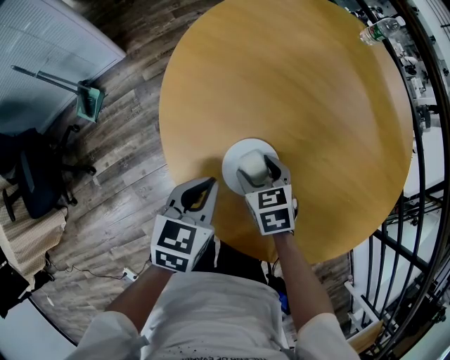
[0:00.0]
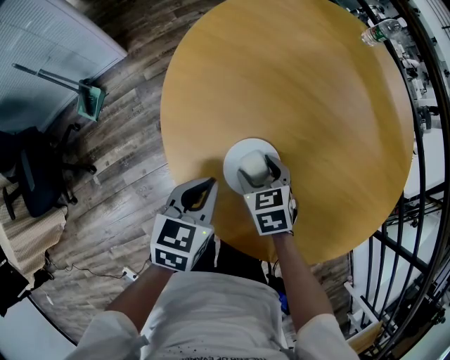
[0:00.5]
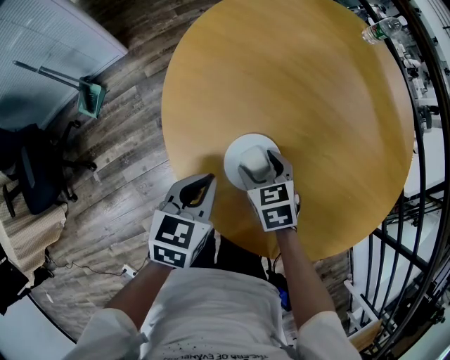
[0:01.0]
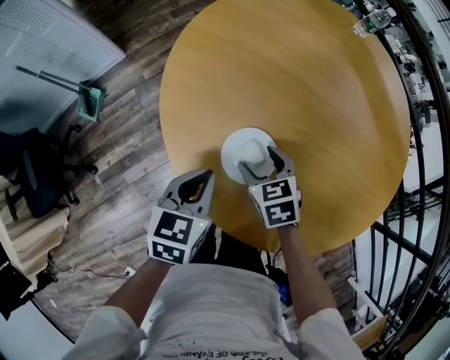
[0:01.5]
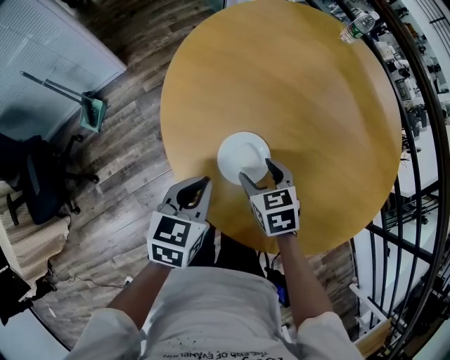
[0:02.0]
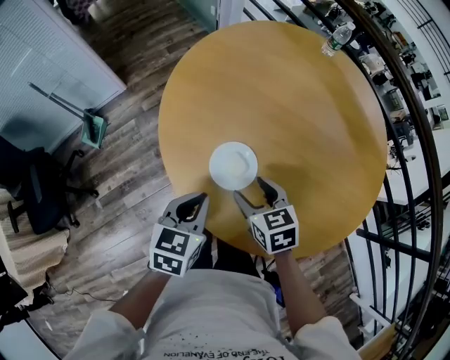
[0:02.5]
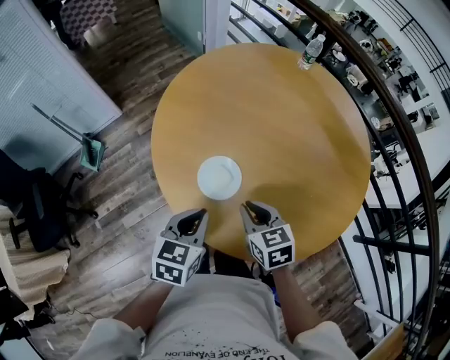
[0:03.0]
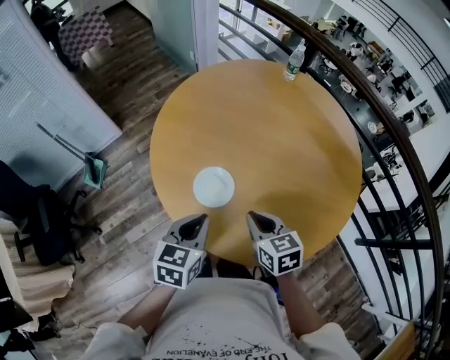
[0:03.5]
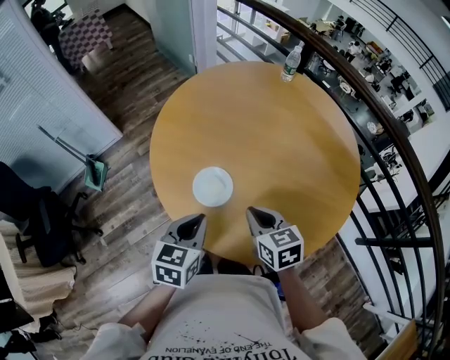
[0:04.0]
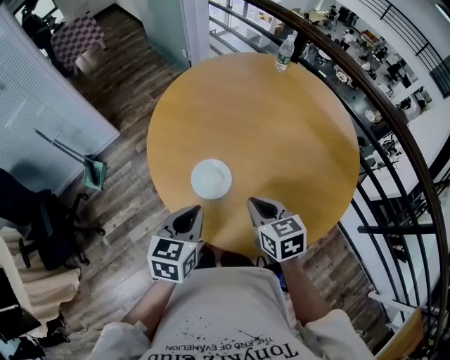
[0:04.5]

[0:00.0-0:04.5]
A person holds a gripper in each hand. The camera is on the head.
0:00.0 to 0:02.0: The right gripper ends up about 5 cm from where it was.
0:02.0 to 0:04.5: The two grippers go about 15 cm upward, backward and to the right. The right gripper closes its fingers.

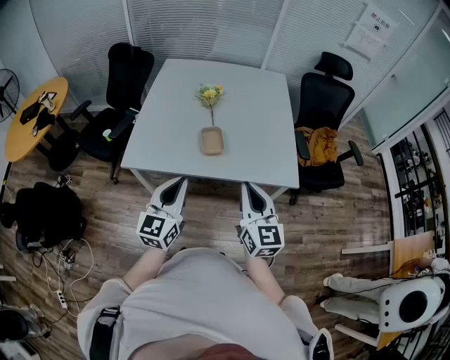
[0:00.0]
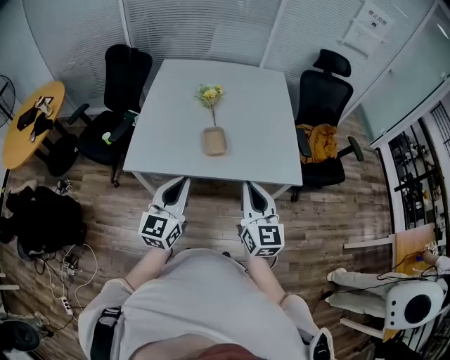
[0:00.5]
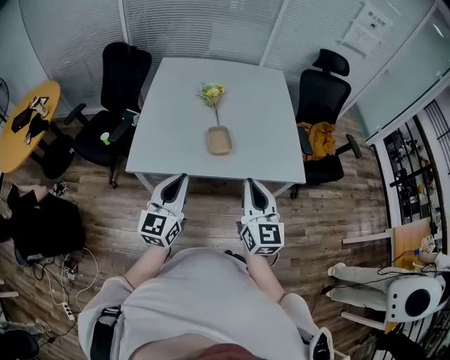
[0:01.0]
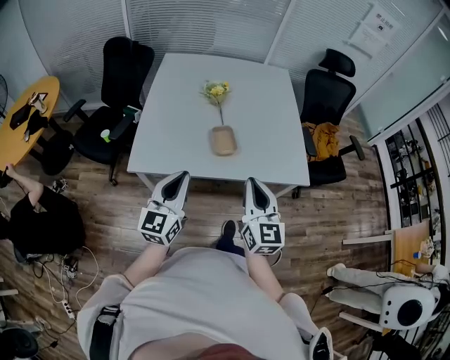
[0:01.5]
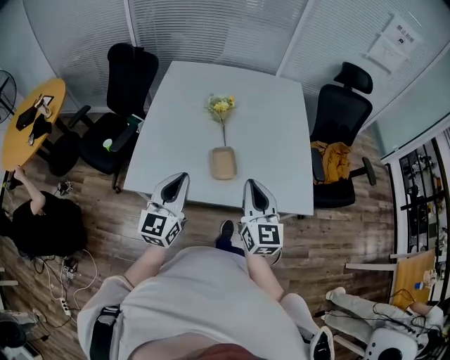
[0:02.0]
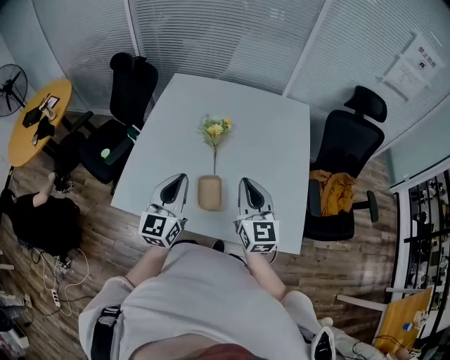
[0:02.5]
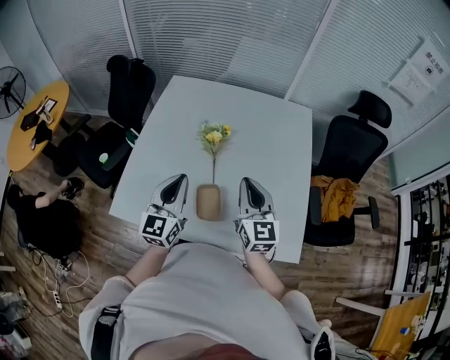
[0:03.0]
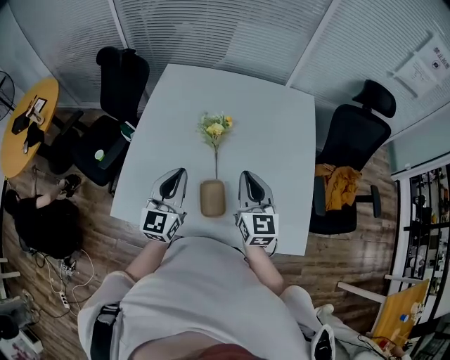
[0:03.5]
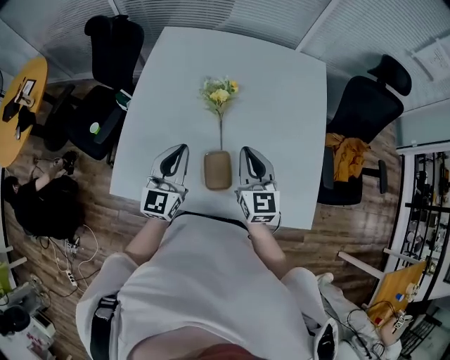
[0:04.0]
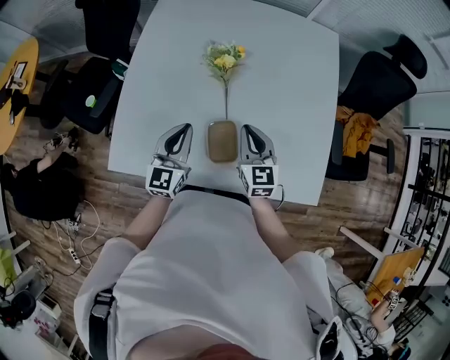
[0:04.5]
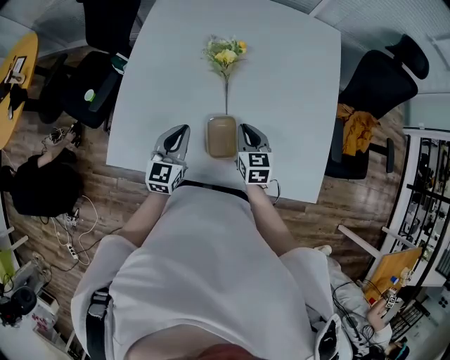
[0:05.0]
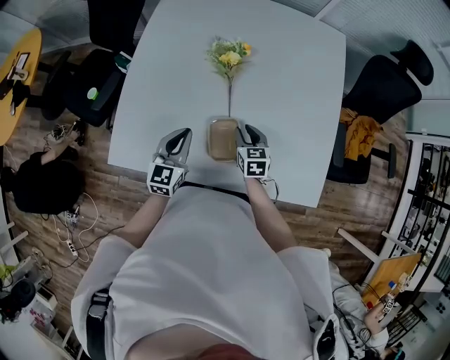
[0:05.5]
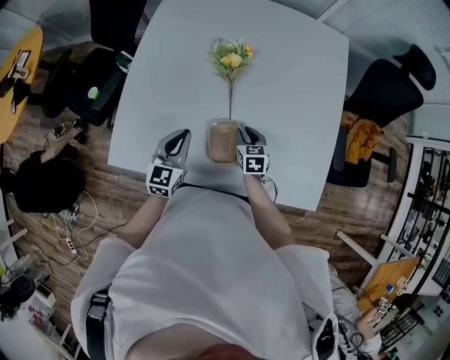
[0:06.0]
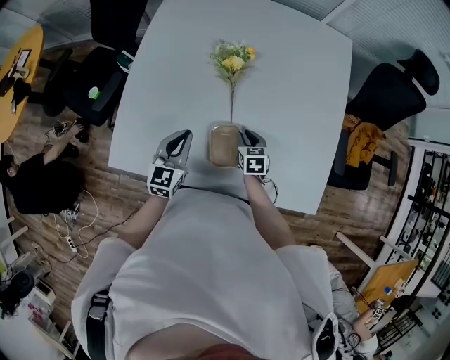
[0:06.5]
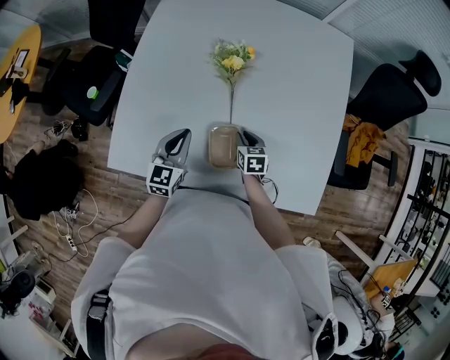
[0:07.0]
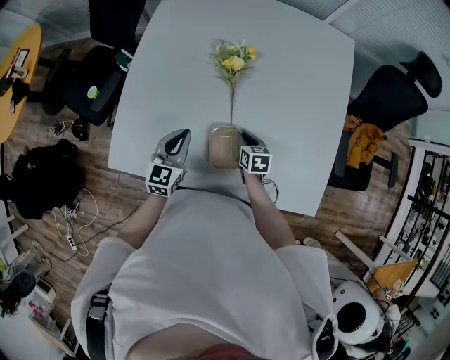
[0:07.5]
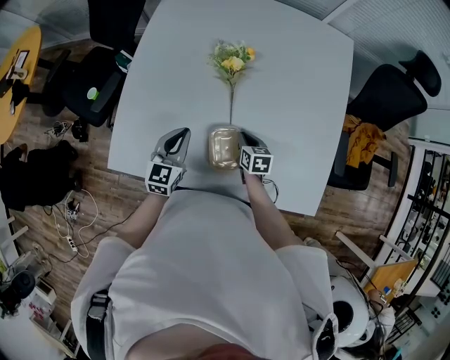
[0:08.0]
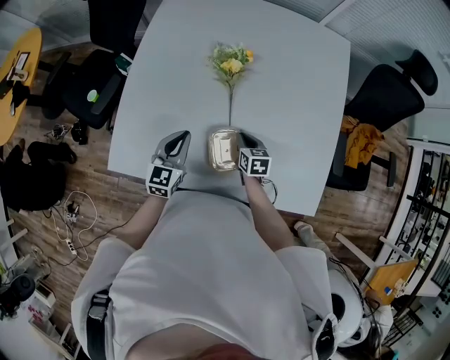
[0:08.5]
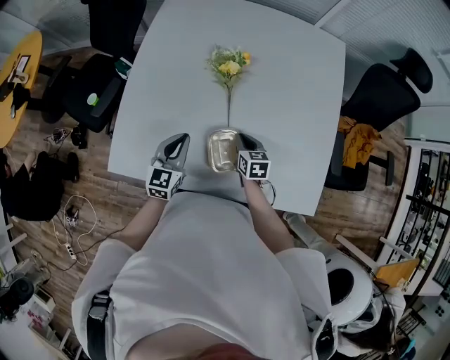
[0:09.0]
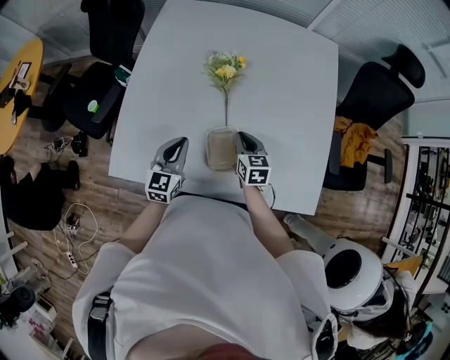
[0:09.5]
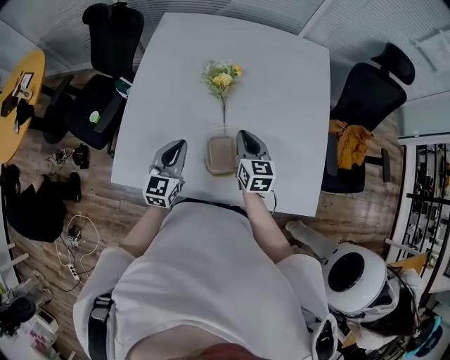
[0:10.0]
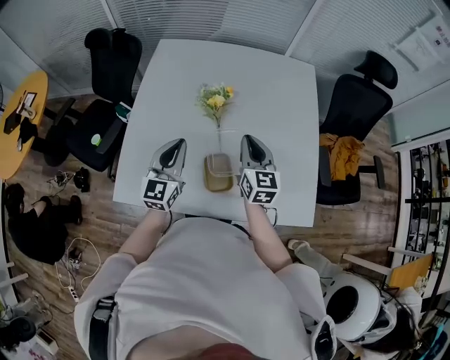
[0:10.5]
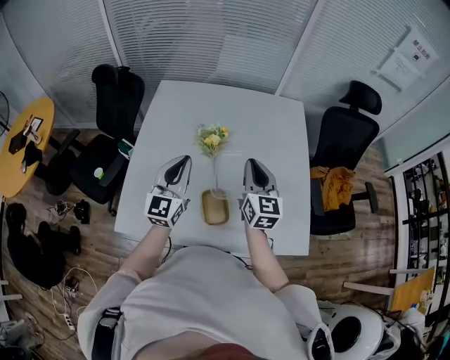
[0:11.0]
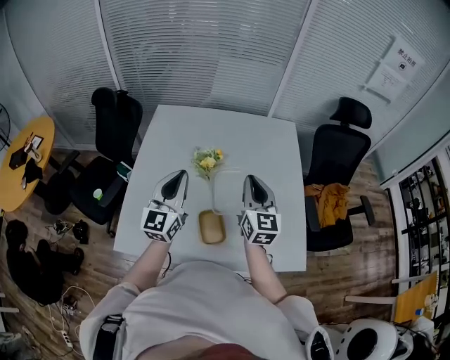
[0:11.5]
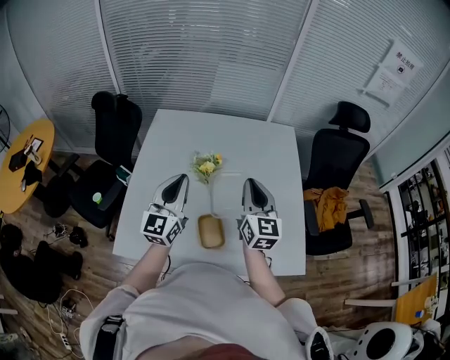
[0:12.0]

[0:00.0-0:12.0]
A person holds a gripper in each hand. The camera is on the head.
0:00.0 to 0:02.0: The left gripper heads forward and to the left, covering roughly 15 cm. Meanwhile the right gripper travels forward by roughly 15 cm.
0:02.0 to 0:04.0: Both grippers move forward, some 25 cm.
0:04.0 to 0:06.0: The left gripper moves downward, some 15 cm. Meanwhile the right gripper moves downward, some 25 cm, points its fingers approximately 30 degrees further downward, and opens.
0:06.0 to 0:08.0: The grippers stay close to where they were, moving slightly.
0:08.0 to 0:10.0: The left gripper travels upward by about 5 cm; the right gripper is displaced upward by roughly 20 cm, and changes its angle by approximately 30 degrees.
0:10.0 to 0:12.0: The two grippers go approximately 20 cm upward. The left gripper turns by some 20 degrees. Meanwhile the right gripper swivels some 30 degrees.

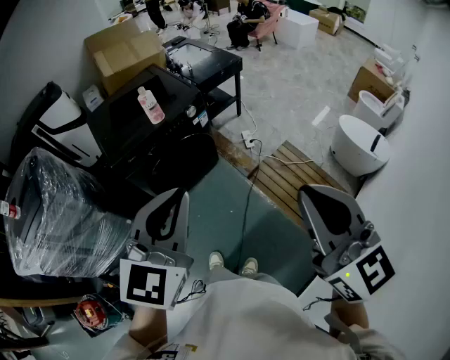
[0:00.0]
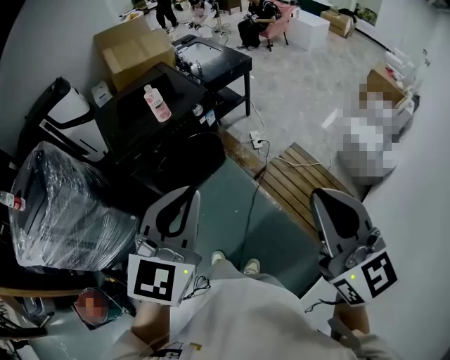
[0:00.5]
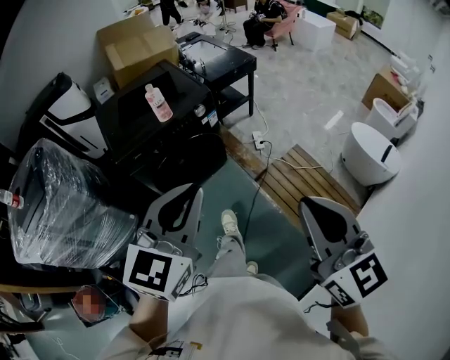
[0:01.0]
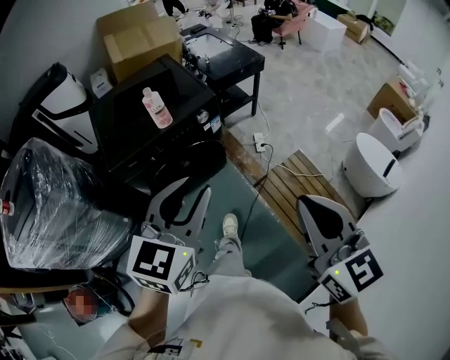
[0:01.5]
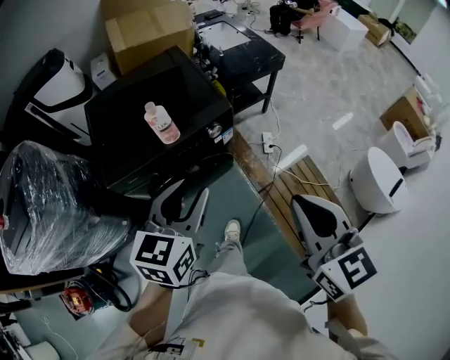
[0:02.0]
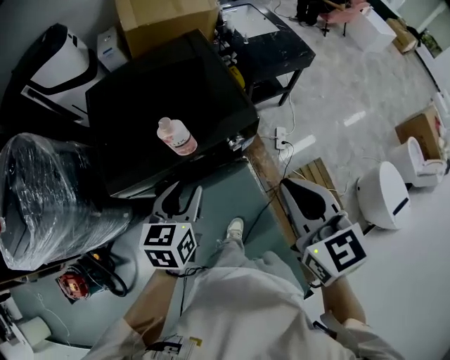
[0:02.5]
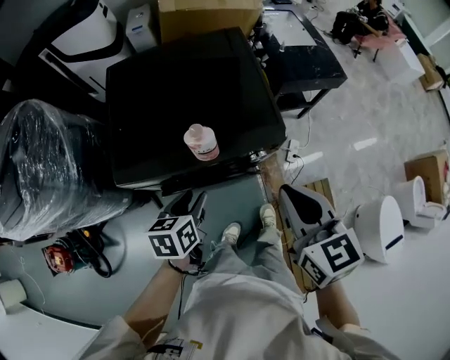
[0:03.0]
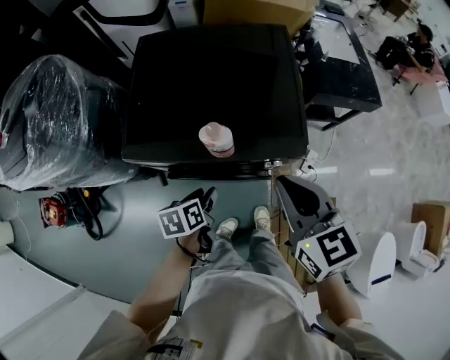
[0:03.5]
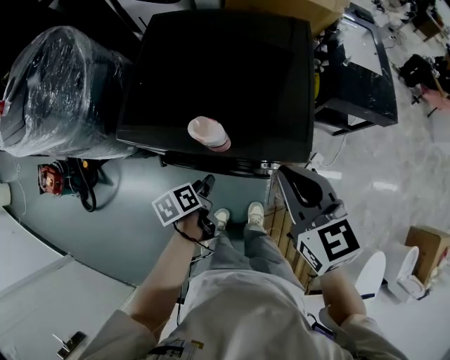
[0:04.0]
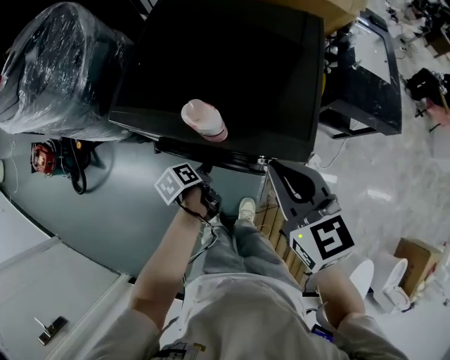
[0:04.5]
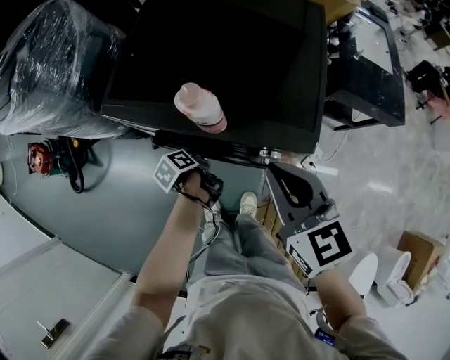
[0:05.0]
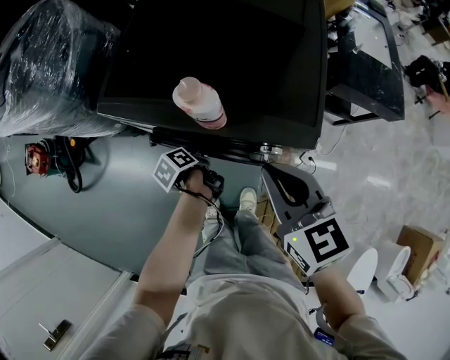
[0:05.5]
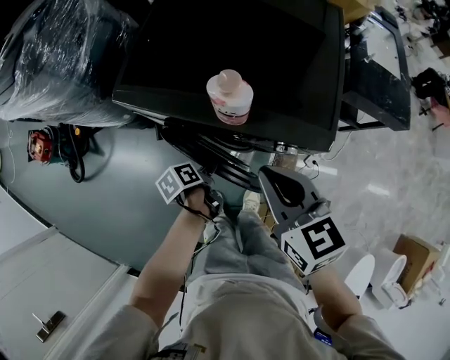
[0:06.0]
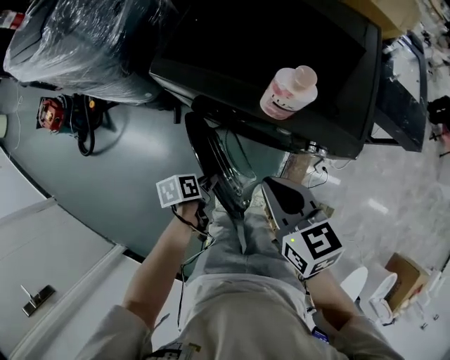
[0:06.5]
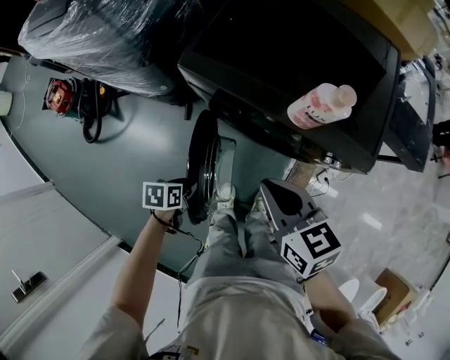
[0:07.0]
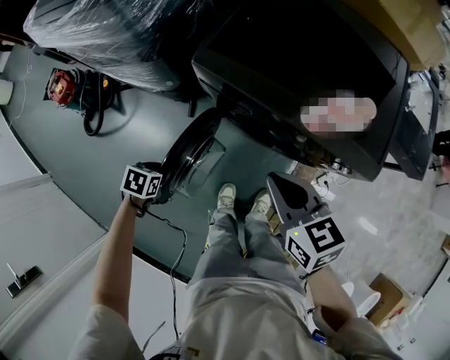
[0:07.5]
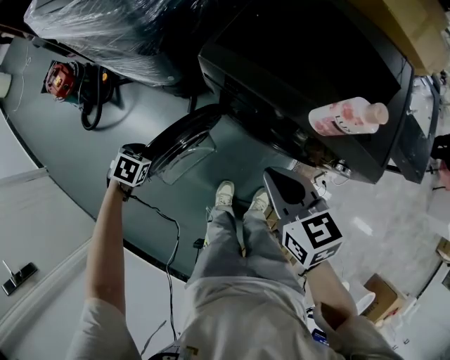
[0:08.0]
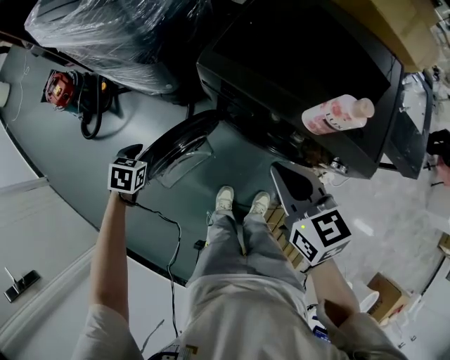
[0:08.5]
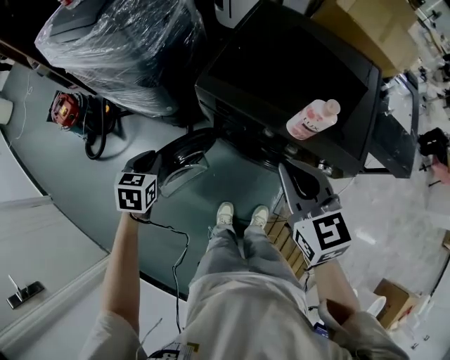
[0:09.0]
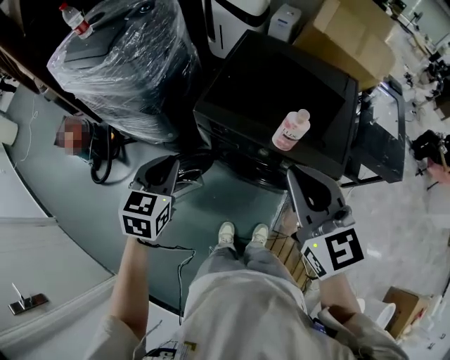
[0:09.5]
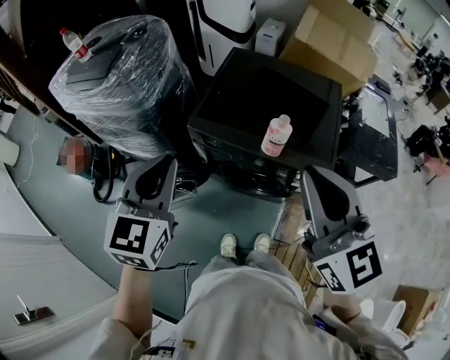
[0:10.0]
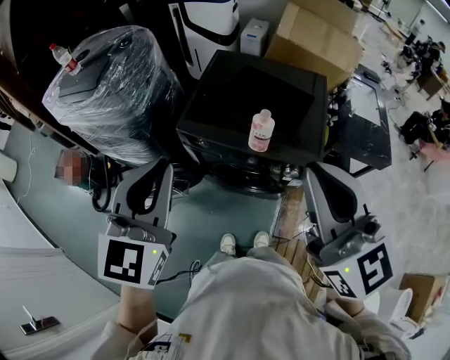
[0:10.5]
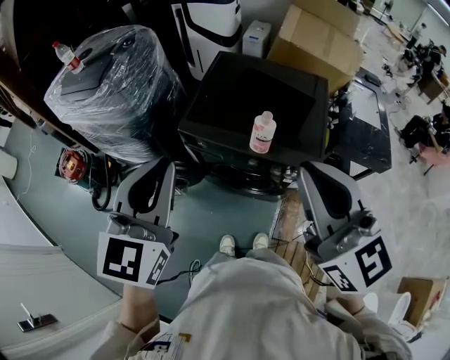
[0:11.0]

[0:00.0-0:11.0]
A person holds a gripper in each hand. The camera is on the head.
0:00.0 to 0:02.0: The right gripper shifts about 30 cm forward. The left gripper is displaced forward and downward by roughly 35 cm, changes its angle by approximately 30 degrees, and opens.
0:02.0 to 0:03.5: The left gripper moves downward, approximately 25 cm, and rotates around the line of its fingers by approximately 60 degrees, counterclockwise from behind. Meanwhile the right gripper ends up about 35 cm from where it was, and swivels approximately 30 degrees.
0:03.5 to 0:05.5: The right gripper goes about 10 cm downward; the left gripper travels downward by some 15 cm, and rolls counterclockwise, seen from behind, by about 50 degrees.
0:05.5 to 0:07.5: The right gripper shifts some 20 cm to the left; the left gripper shifts about 35 cm to the left and backward, and twists approximately 60 degrees clockwise, seen from behind.
0:07.5 to 0:09.0: The right gripper heads upward, covering about 10 cm. Meanwhile the left gripper goes approximately 15 cm upward, and rotates some 30 degrees.
0:09.0 to 0:11.0: The left gripper goes approximately 40 cm upward and to the right, and tips its fingers upward by approximately 40 degrees. The right gripper heads upward, covering roughly 25 cm, and rotates some 30 degrees.
